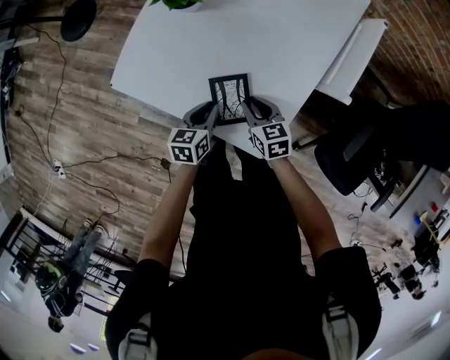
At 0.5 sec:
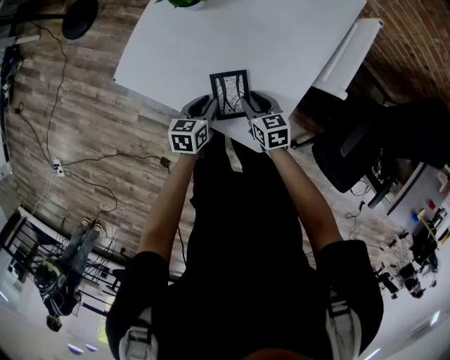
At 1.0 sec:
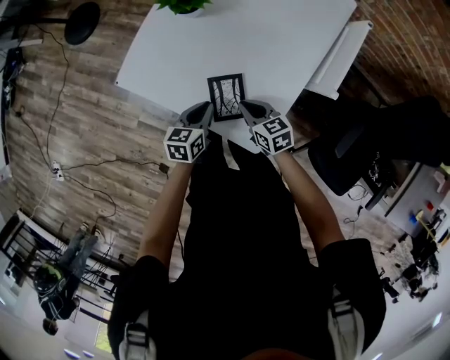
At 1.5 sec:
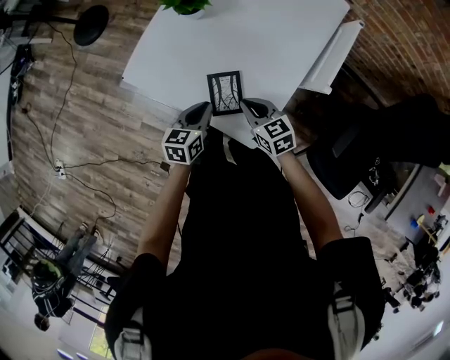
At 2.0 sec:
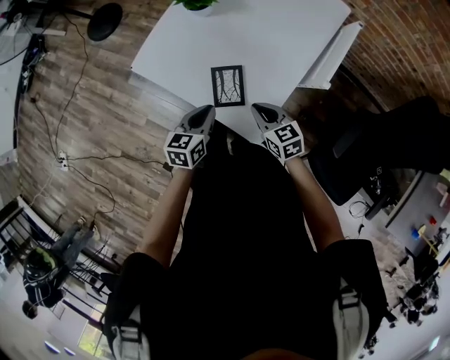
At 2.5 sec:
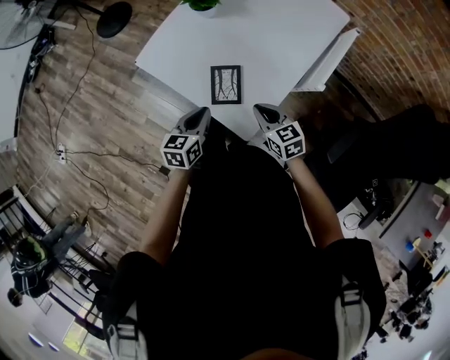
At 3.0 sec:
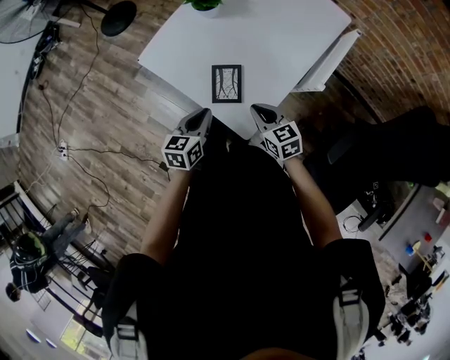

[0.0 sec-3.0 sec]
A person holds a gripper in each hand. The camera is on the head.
0.0 sec to 1.5 sec: The two grippers go some 10 cm upward. The right gripper closes up.
1.5 sec to 3.0 sec: The left gripper is displaced backward and upward by roughly 10 cm. The right gripper shifts about 5 cm backward.

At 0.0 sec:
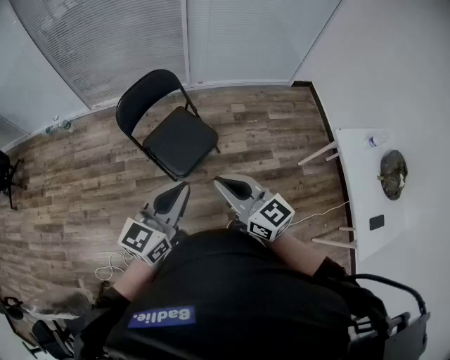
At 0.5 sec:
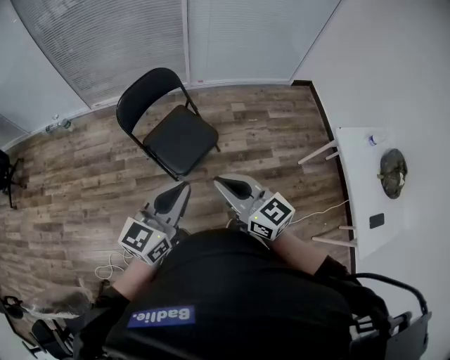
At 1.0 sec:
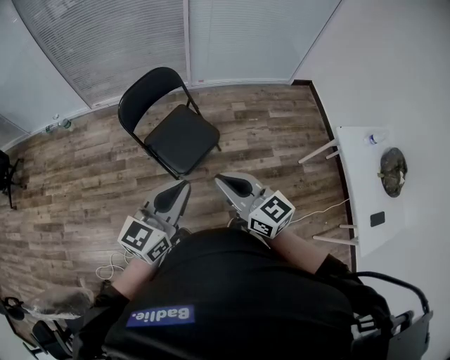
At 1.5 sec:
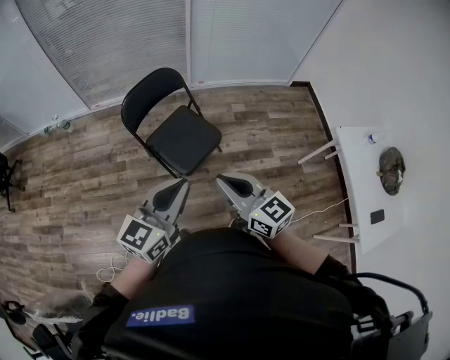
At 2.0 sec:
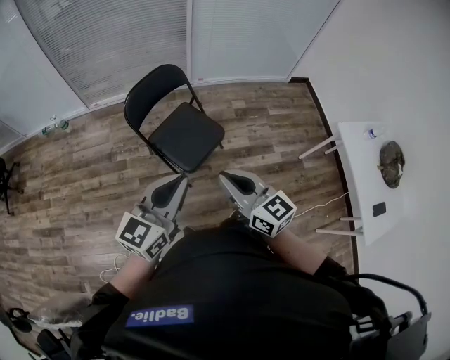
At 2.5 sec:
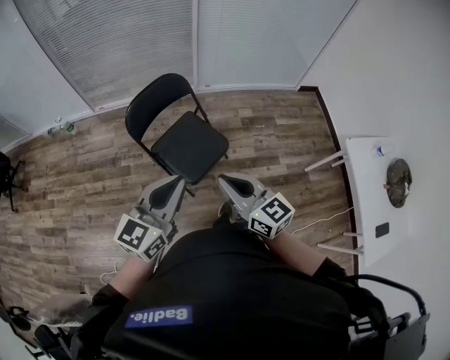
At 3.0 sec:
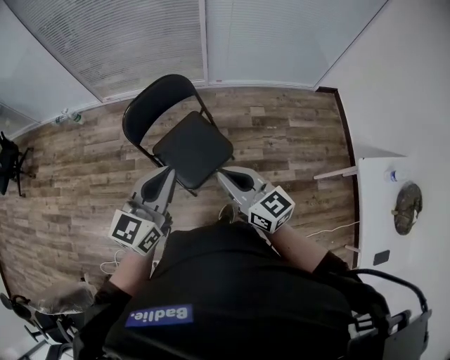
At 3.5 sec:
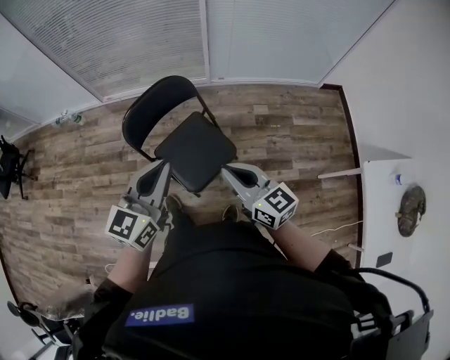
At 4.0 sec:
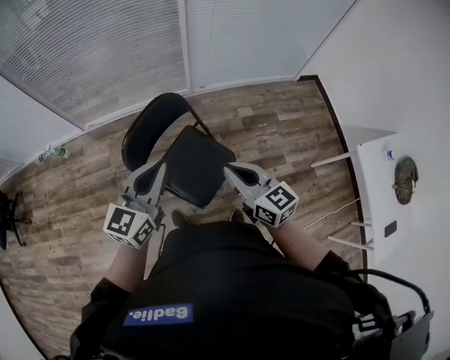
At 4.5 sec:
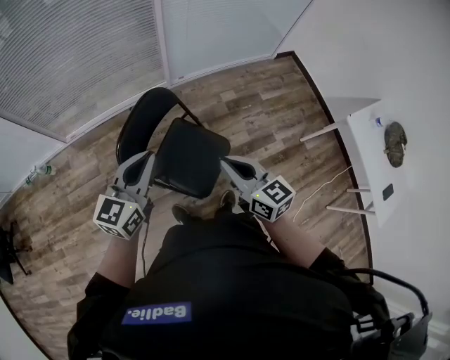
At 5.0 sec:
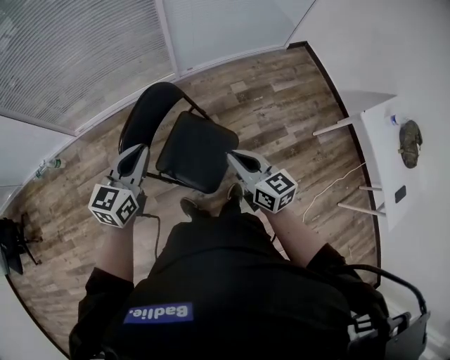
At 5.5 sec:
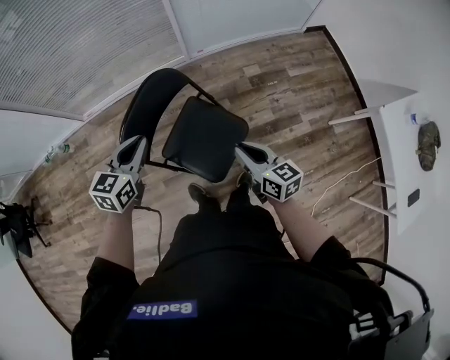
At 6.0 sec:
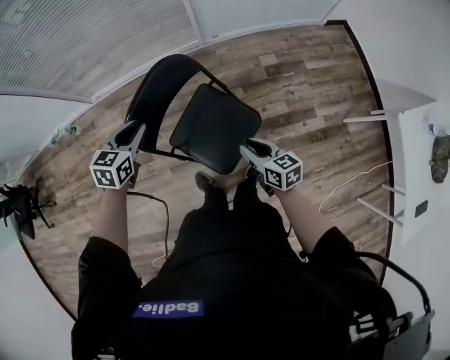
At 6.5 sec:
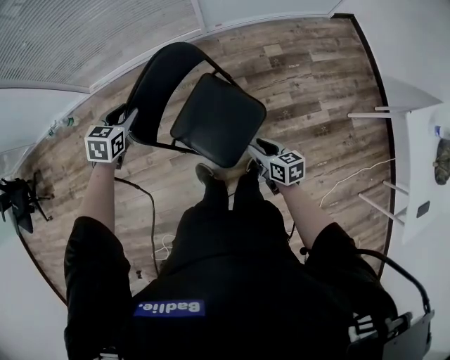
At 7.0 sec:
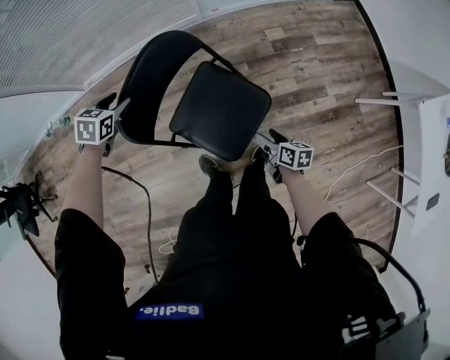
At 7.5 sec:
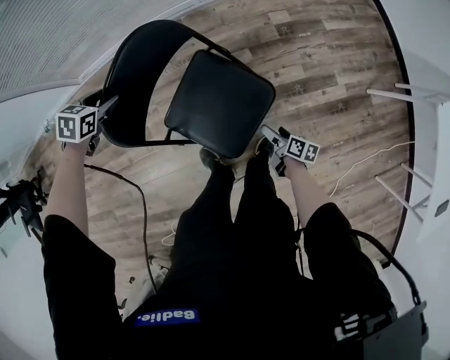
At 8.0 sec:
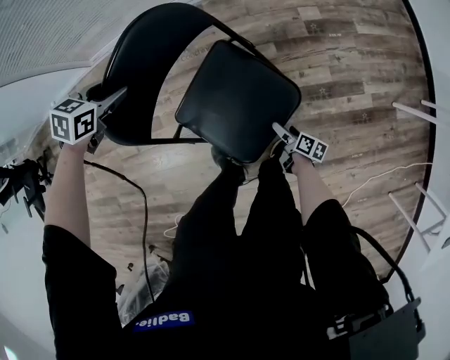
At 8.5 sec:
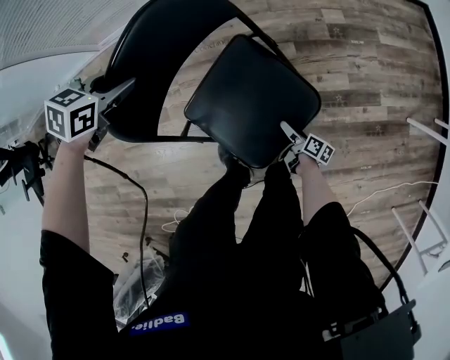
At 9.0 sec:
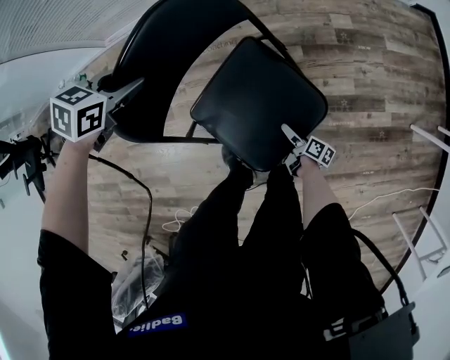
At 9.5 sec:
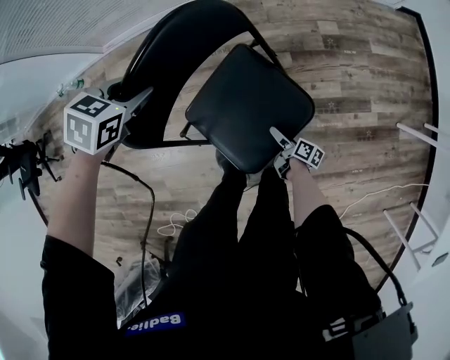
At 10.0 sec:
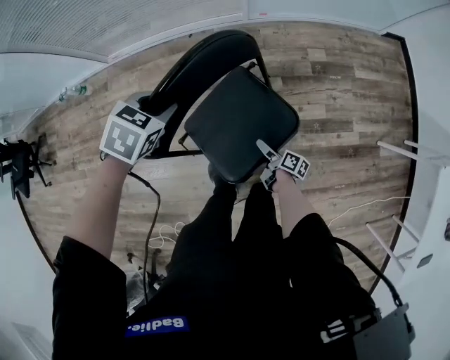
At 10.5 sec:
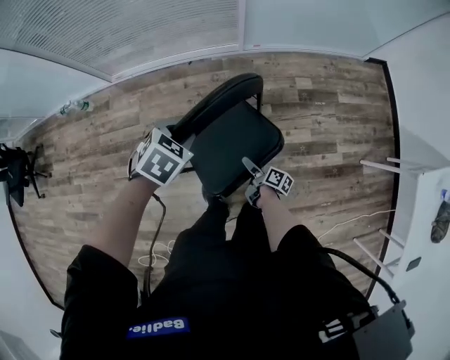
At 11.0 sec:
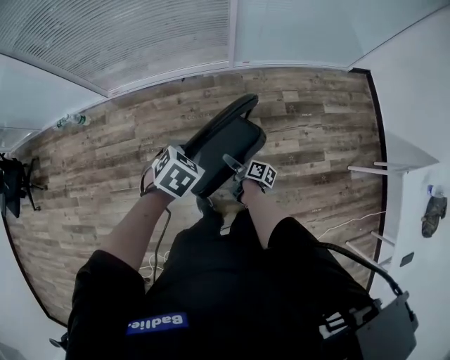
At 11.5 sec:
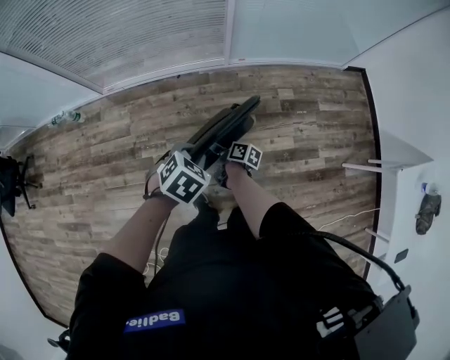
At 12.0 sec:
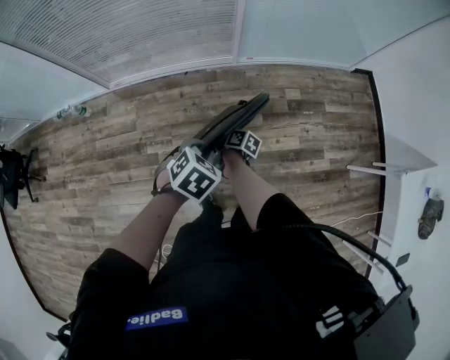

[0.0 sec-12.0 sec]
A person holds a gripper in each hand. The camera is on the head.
0.0 sec to 2.0 sec: The two grippers go roughly 10 cm to the left.
2.0 sec to 4.0 sec: Both grippers move forward, about 35 cm.
4.0 sec to 6.0 sec: The left gripper moves downward, forward and to the left, approximately 30 cm, and angles its fingers downward, by about 30 degrees. The right gripper shifts roughly 25 cm downward, and changes its angle by roughly 30 degrees.
6.0 sec to 8.0 sec: The right gripper heads downward, covering approximately 40 cm, rolls clockwise, seen from behind, by roughly 50 degrees, and opens. The left gripper is displaced downward and forward by some 25 cm, changes its angle by about 20 degrees, and opens its fingers.
8.0 sec to 10.0 sec: The right gripper goes approximately 15 cm to the left and upward. Meanwhile the left gripper goes roughly 10 cm upward and backward.
10.0 sec to 12.0 sec: The right gripper heads upward, to the left and forward, covering about 30 cm. The left gripper is displaced upward, backward and to the right by about 15 cm.

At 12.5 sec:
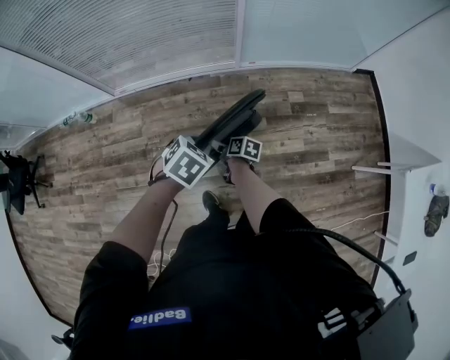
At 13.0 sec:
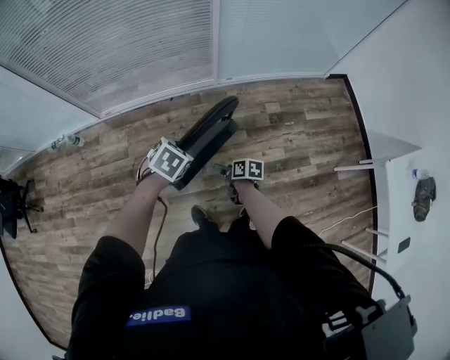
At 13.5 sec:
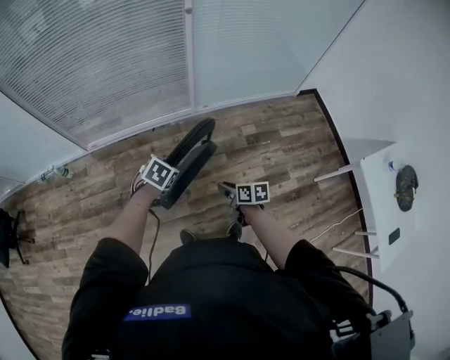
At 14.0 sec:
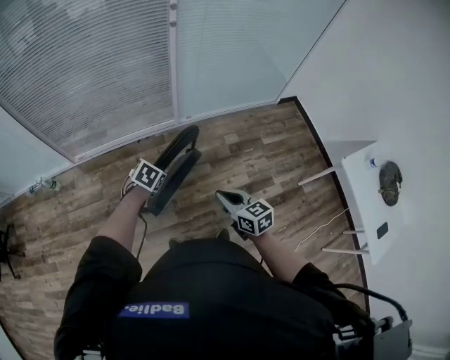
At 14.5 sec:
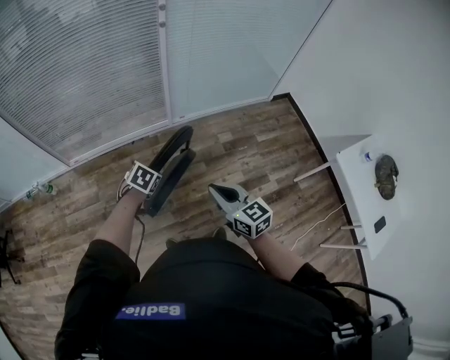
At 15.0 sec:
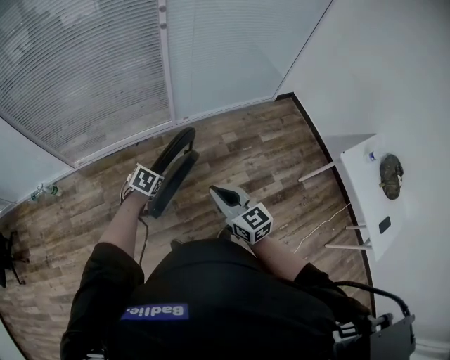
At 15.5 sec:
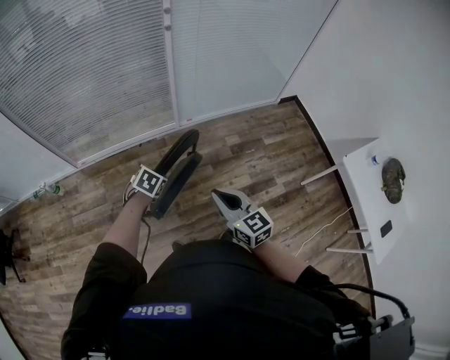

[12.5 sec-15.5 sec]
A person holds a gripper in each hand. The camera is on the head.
12.5 sec to 14.0 sec: The right gripper is displaced upward, backward and to the right by some 35 cm, rolls counterclockwise, seen from behind, by approximately 50 degrees, and closes.
14.0 sec to 15.5 sec: The right gripper travels upward by about 5 cm.

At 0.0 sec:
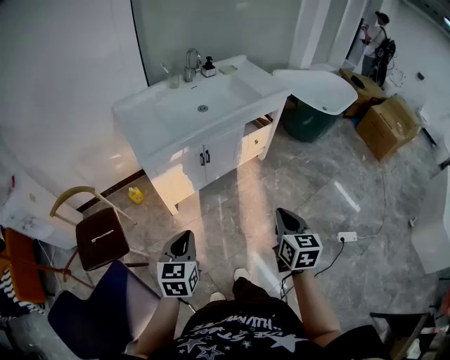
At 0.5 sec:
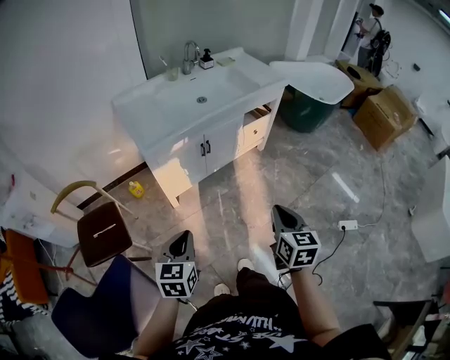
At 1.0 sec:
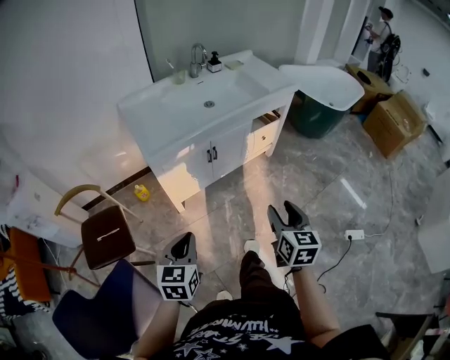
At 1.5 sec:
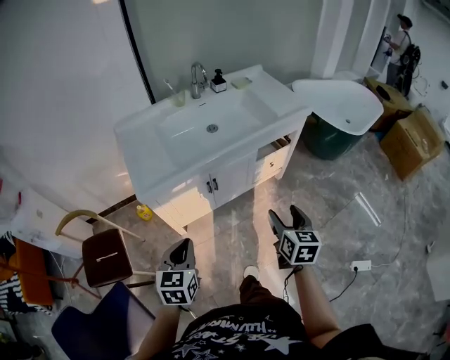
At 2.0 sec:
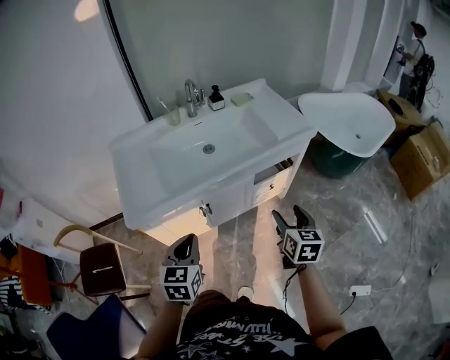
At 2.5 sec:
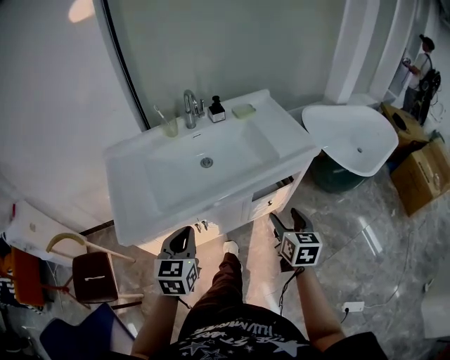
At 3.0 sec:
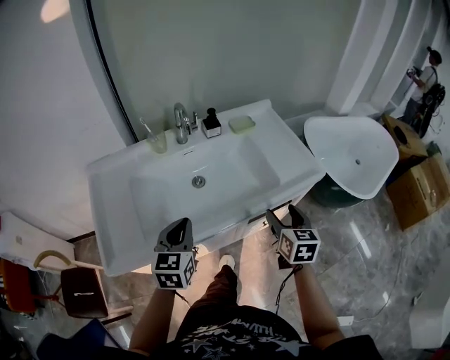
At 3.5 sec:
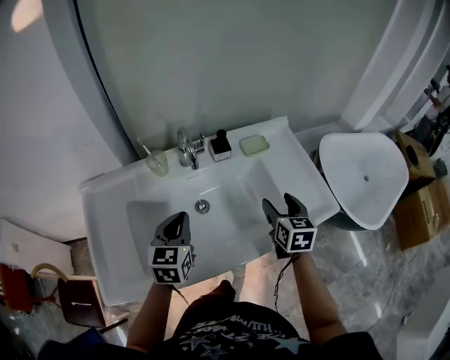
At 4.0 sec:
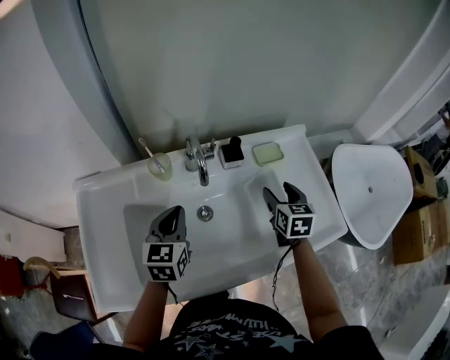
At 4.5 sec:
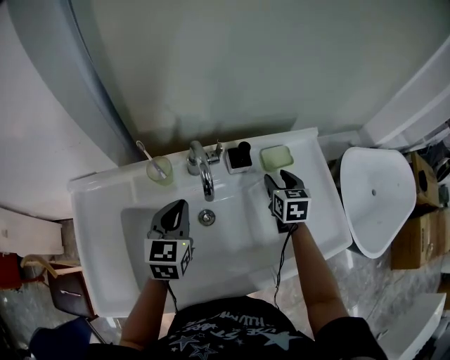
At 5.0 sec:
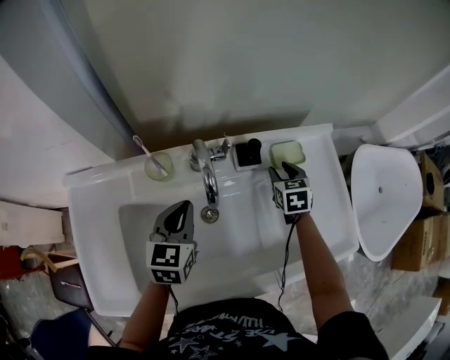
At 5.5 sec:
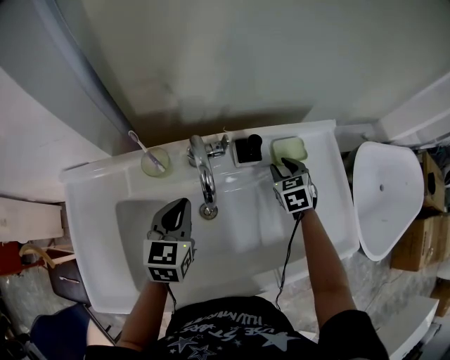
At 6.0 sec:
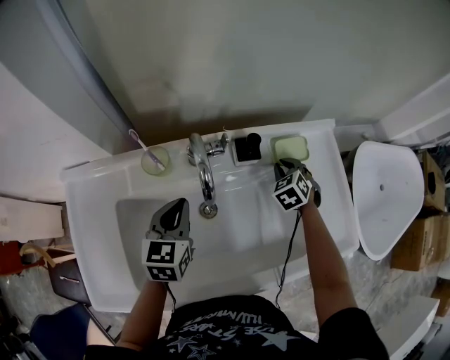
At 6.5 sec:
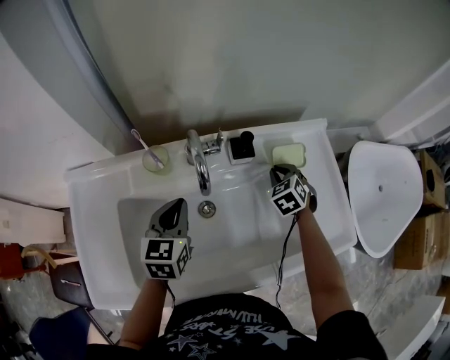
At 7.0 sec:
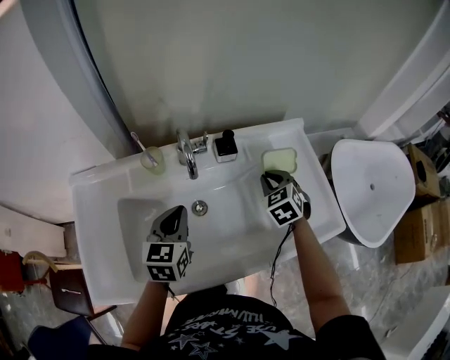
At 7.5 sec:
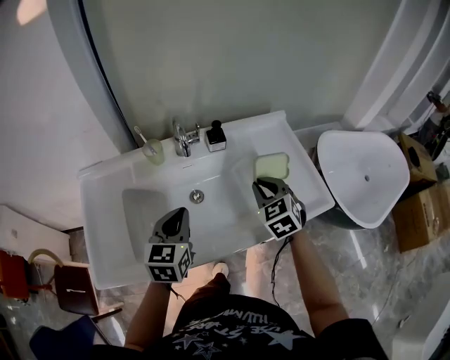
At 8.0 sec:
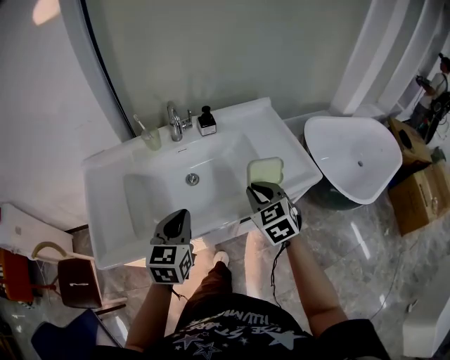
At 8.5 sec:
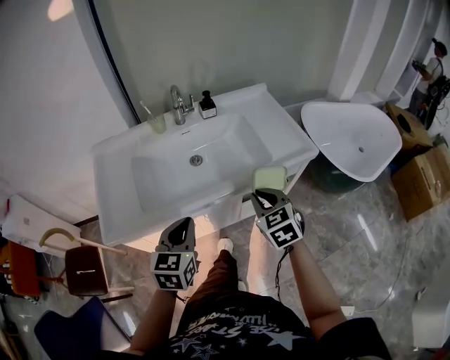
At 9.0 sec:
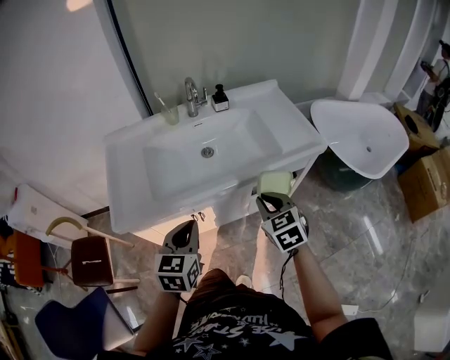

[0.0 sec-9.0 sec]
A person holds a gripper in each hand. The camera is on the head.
0.0 sec to 2.0 sec: The two grippers go about 35 cm forward. The right gripper opens its fingers.
2.0 sec to 4.5 sec: The pair of grippers is taken forward, roughly 60 cm. The right gripper turns by about 30 degrees.
4.5 sec to 7.0 sec: The two grippers go about 5 cm backward. The right gripper rotates roughly 30 degrees, and closes up.
7.0 sec to 9.0 sec: The grippers both shift backward by some 40 cm.
